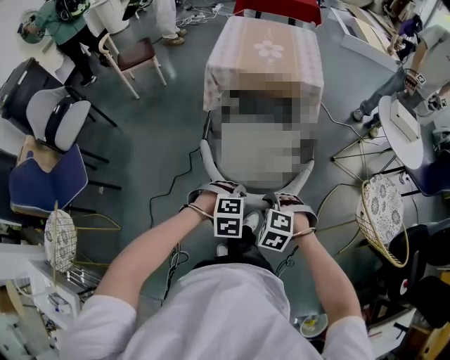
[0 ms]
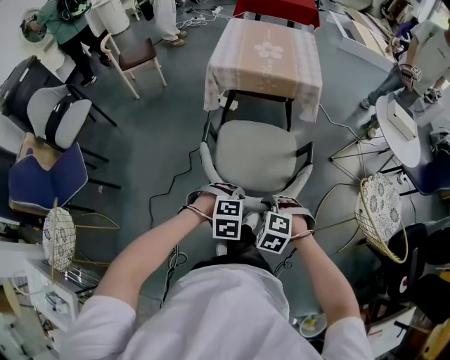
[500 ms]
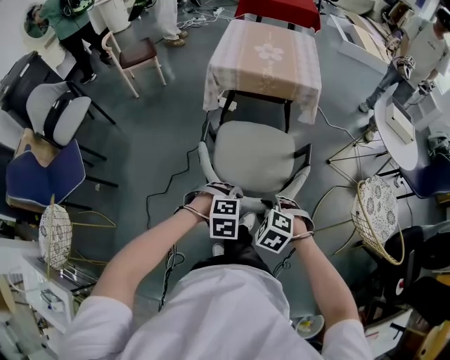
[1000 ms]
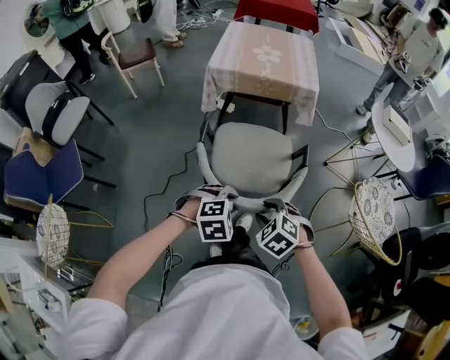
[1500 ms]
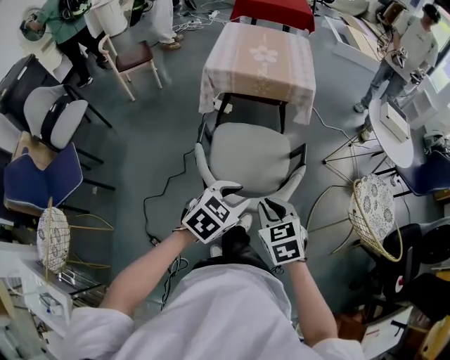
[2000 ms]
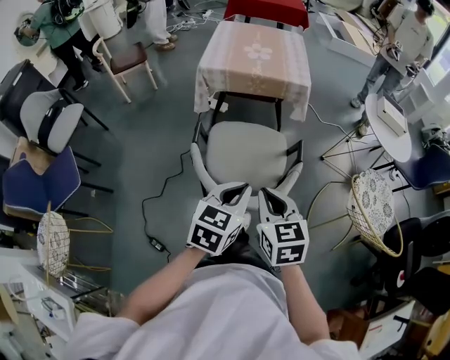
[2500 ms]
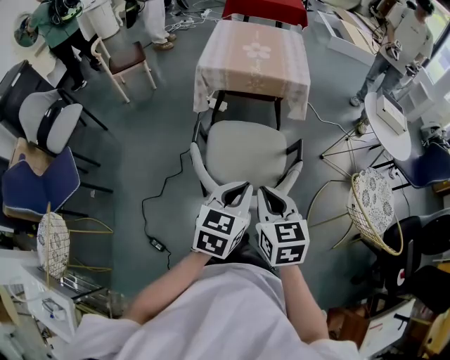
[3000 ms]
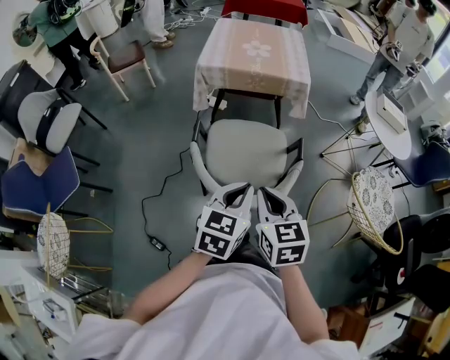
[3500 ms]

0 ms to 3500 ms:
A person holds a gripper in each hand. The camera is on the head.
0 ms to 2000 ms: Both grippers move upward, roughly 10 cm. The left gripper twists roughly 40 degrees counterclockwise, seen from behind. The right gripper rolls clockwise, seen from behind, by approximately 50 degrees.
2000 ms to 3500 ms: The left gripper swivels approximately 30 degrees, and closes its fingers, while the right gripper goes some 5 cm upward, and changes its angle by approximately 20 degrees.

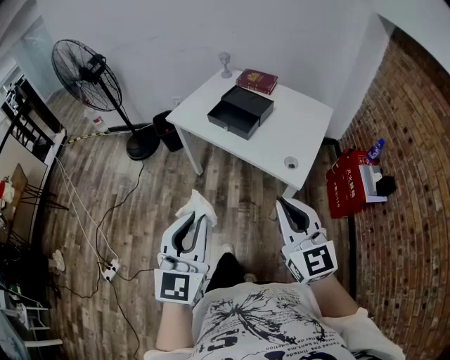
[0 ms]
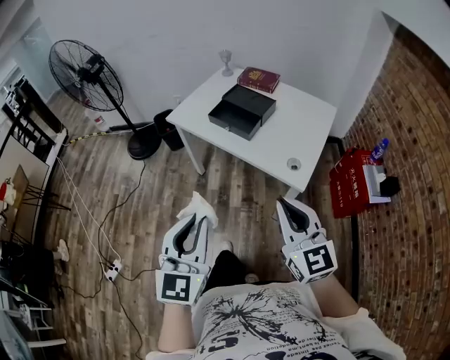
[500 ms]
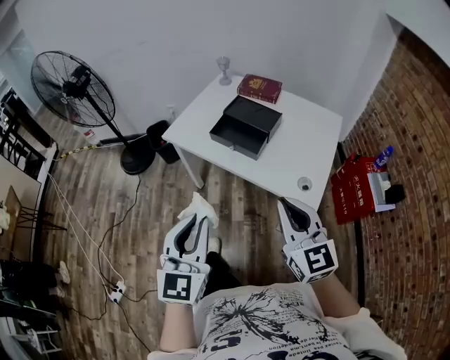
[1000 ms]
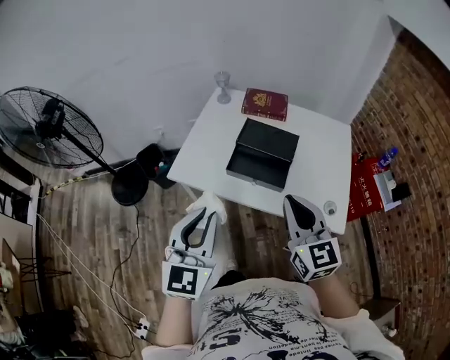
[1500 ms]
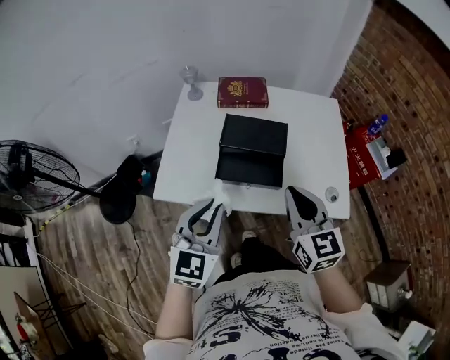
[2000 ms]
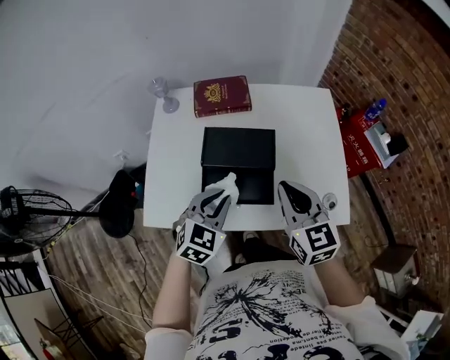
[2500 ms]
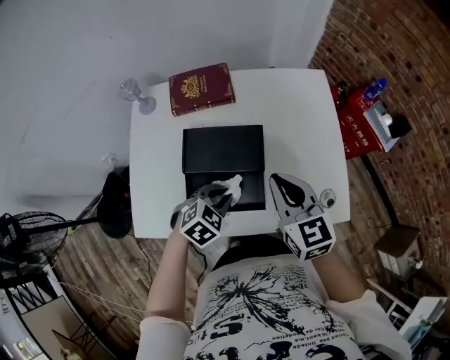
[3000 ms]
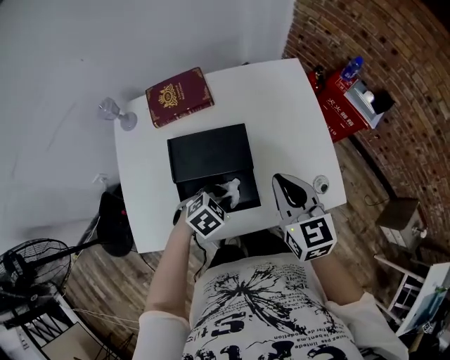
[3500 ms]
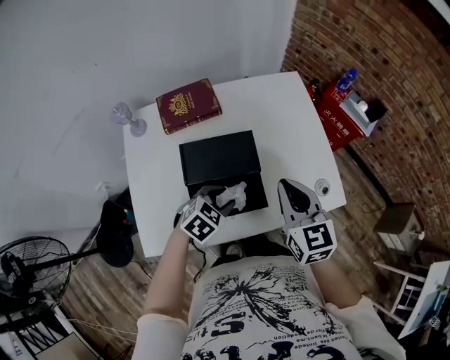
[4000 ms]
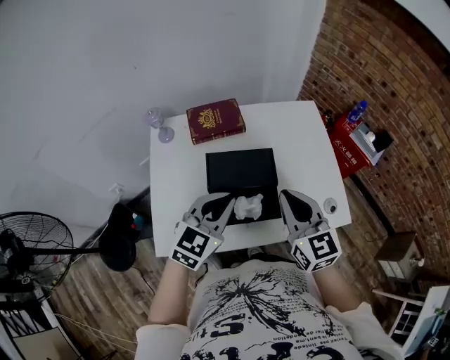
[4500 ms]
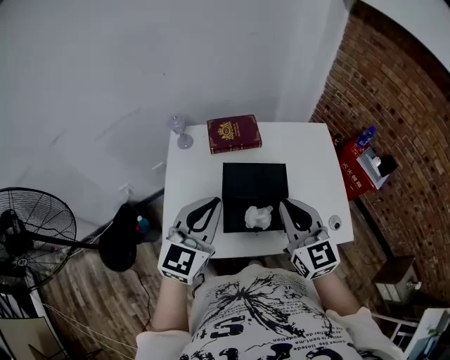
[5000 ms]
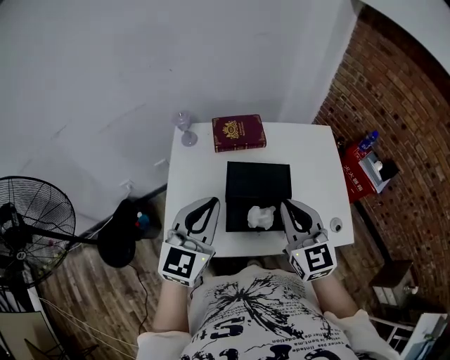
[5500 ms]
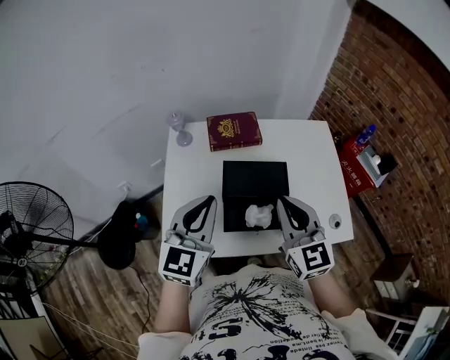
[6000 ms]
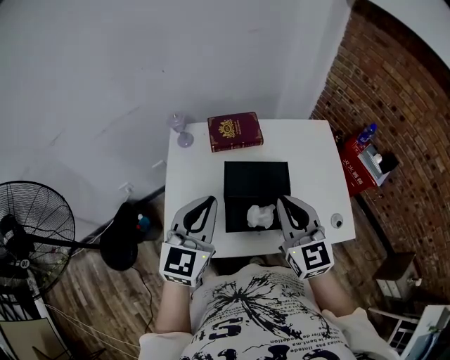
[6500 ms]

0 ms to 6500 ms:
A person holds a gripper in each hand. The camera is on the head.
0 ms to 2000 ms: Both grippers are carried about 50 cm. The right gripper turns by approximately 40 degrees. The left gripper turns by some 40 degrees.
2000 ms to 4500 ms: The right gripper reaches some 10 cm downward, then returns. Meanwhile the left gripper moves some 25 cm downward and comes back, rotates about 30 degrees, and opens, then closes again.
4500 ms to 6500 ms: The left gripper goes approximately 10 cm to the left and upward, and changes its angle by roughly 20 degrees; the right gripper goes some 5 cm to the left.

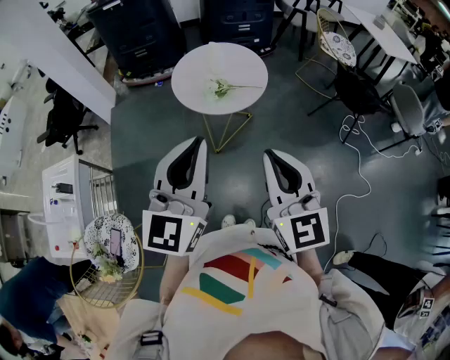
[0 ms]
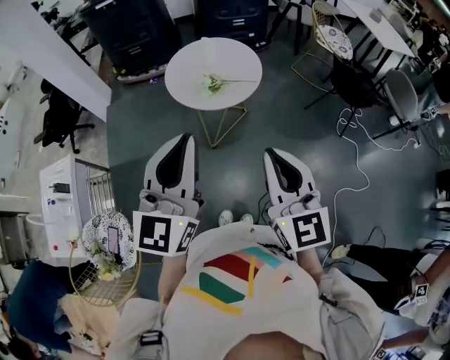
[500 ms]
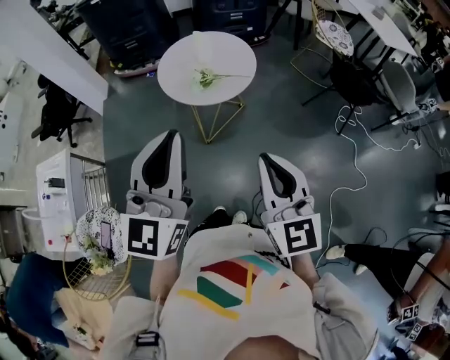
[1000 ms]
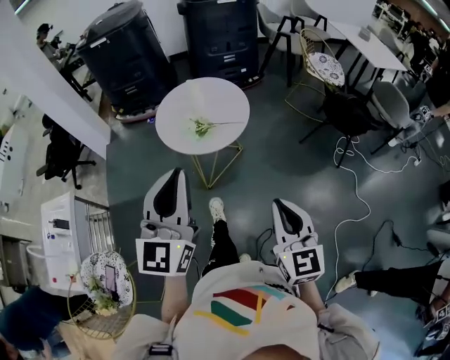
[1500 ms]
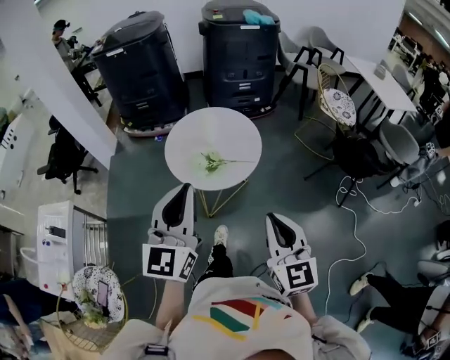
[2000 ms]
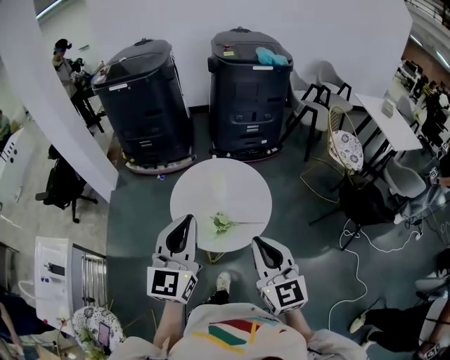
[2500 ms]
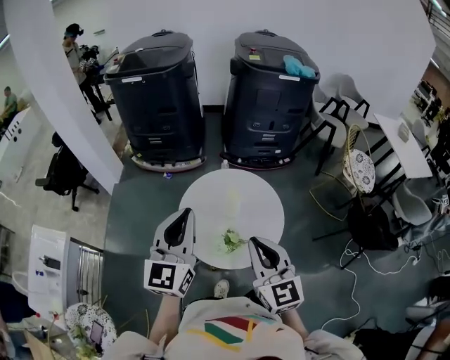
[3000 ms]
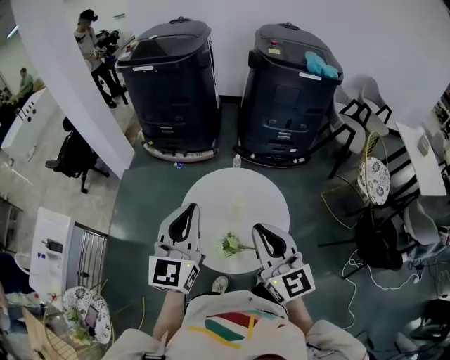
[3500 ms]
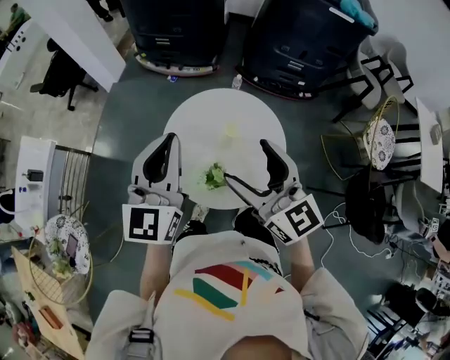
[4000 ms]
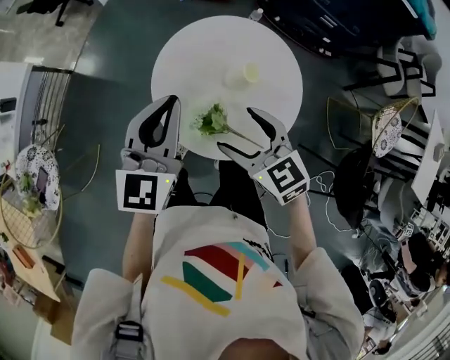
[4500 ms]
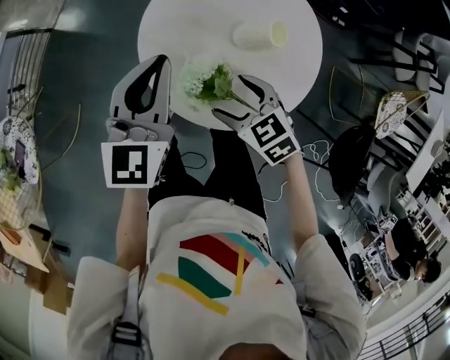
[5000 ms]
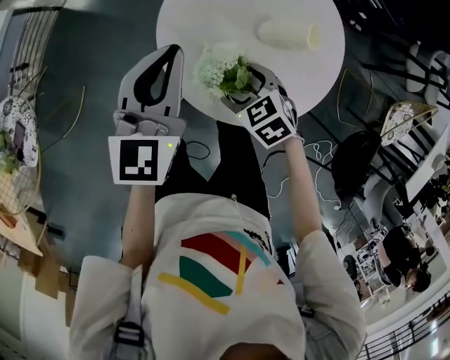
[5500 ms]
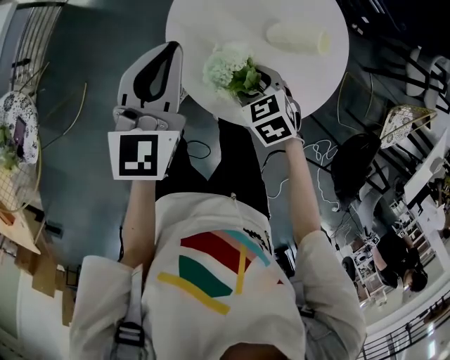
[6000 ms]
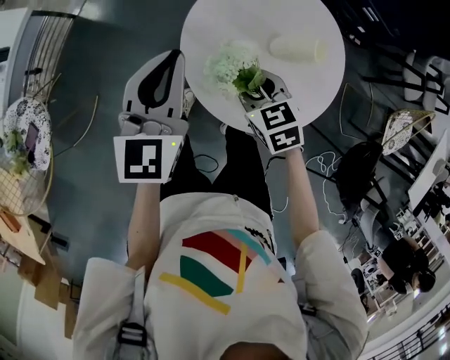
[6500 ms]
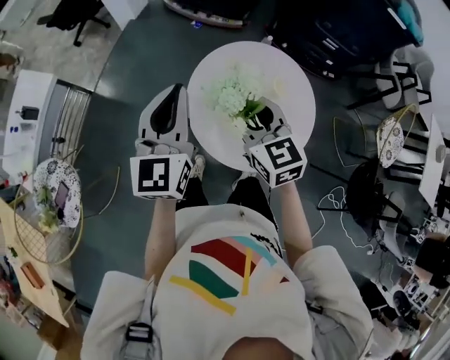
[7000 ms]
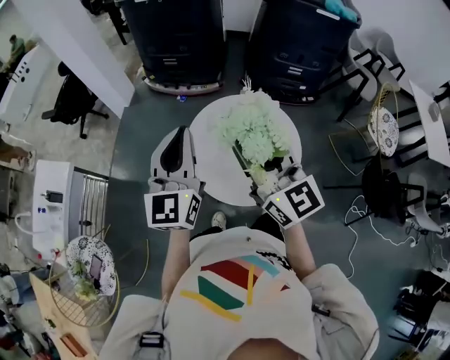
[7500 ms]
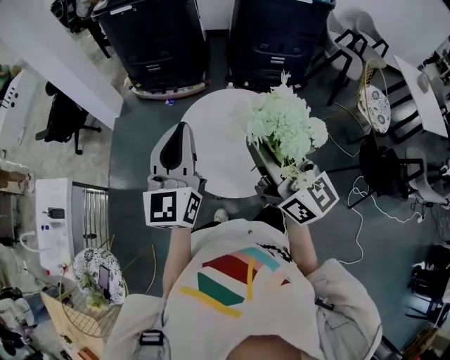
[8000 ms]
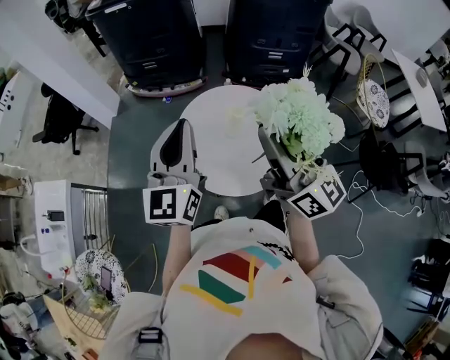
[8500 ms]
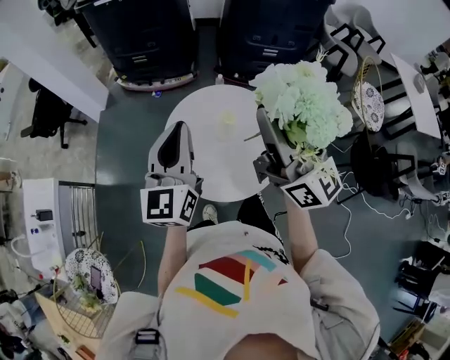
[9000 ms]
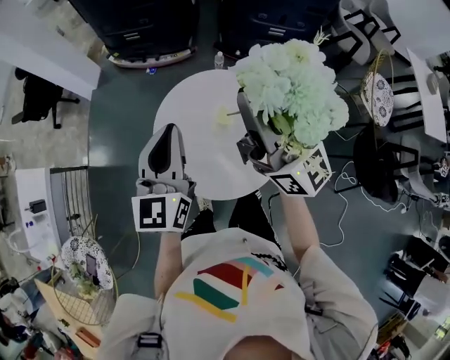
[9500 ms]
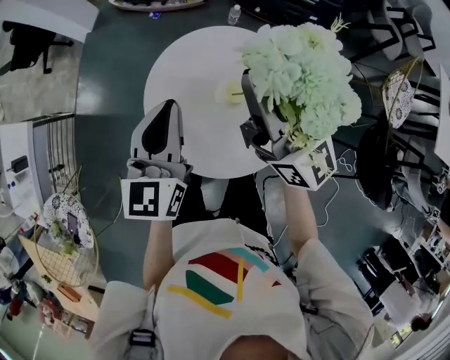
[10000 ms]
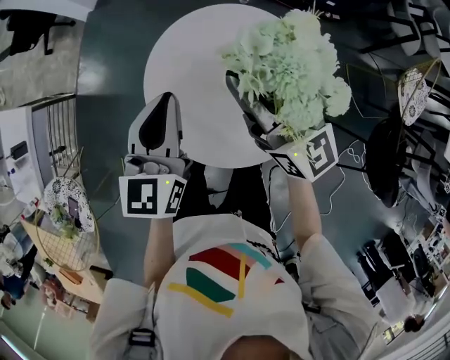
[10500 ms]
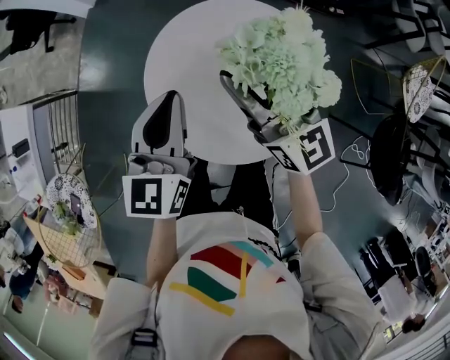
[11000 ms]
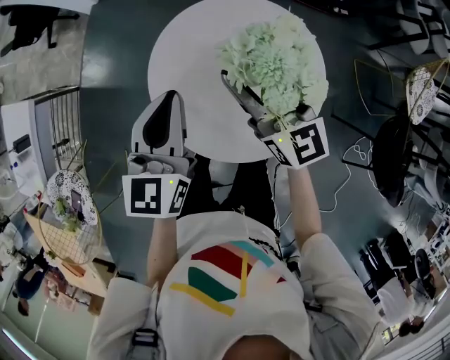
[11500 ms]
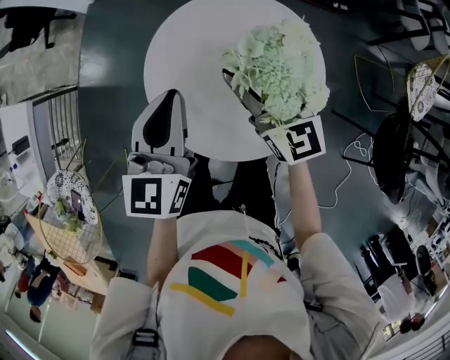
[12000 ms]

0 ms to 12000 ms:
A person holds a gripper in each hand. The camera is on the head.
0 ms to 2000 ms: The right gripper goes roughly 15 cm forward, to the right and downward. Meanwhile the left gripper shifts some 15 cm forward.
2000 ms to 4000 ms: The left gripper changes place by approximately 30 cm, and turns by approximately 20 degrees; the right gripper ends up approximately 40 cm from where it was, swivels some 40 degrees, and opens its fingers.
4000 ms to 6000 ms: The left gripper moves downward, approximately 20 cm, and rotates approximately 20 degrees. The right gripper is displaced downward by about 35 cm, points its fingers approximately 60 degrees further downward, and closes.
6000 ms to 8000 ms: The right gripper shifts about 40 cm upward, and tips its fingers upward by some 80 degrees, while the left gripper heads upward, covering approximately 25 cm, and swivels about 30 degrees.
8000 ms to 10000 ms: The left gripper shifts roughly 20 cm downward and forward, and rotates about 20 degrees; the right gripper shifts about 20 cm forward and downward.
10000 ms to 12000 ms: The right gripper goes about 15 cm downward, changes its angle by roughly 20 degrees, and opens its fingers. The left gripper ends up approximately 5 cm from where it was.

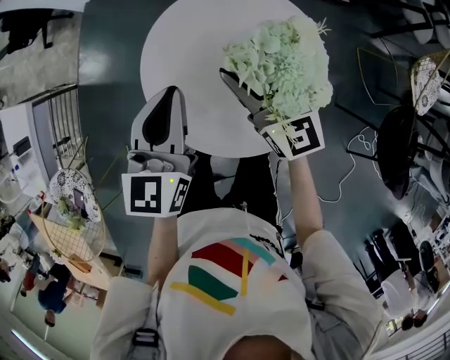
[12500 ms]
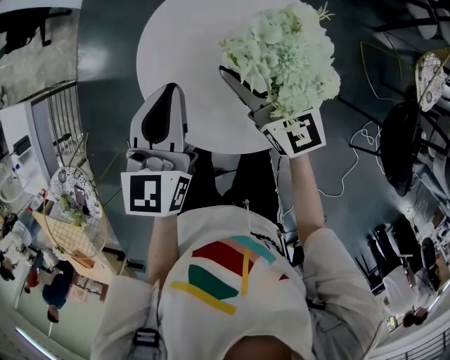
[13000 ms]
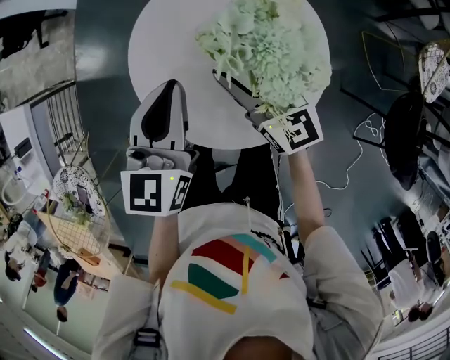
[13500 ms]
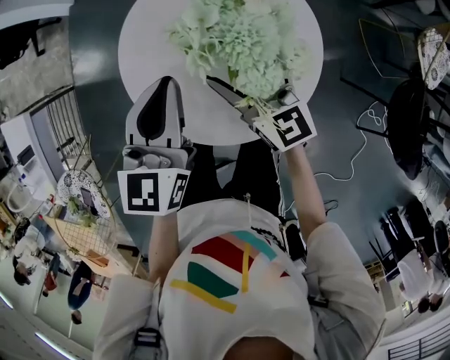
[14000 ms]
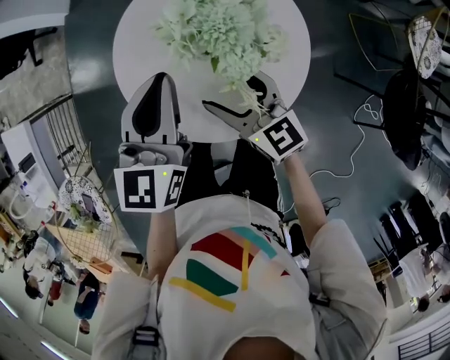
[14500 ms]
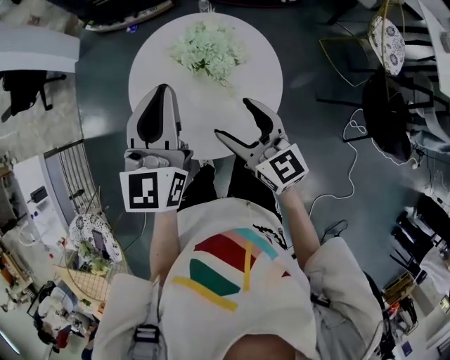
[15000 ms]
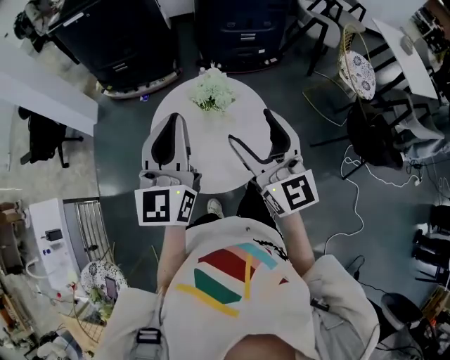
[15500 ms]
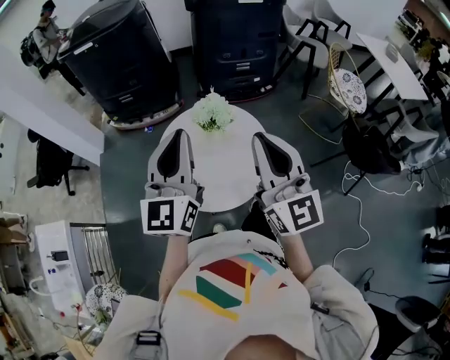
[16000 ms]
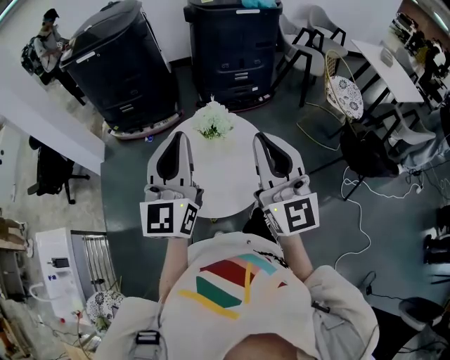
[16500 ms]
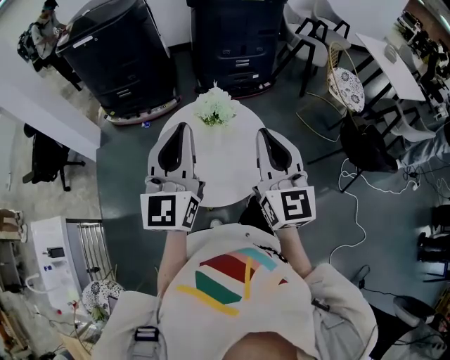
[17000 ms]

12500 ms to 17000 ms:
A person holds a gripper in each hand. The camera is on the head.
12500 ms to 14500 ms: The right gripper heads backward and downward, covering approximately 10 cm.
14500 ms to 17000 ms: The grippers both shift upward by about 25 cm. The right gripper swivels some 50 degrees, and closes up. Meanwhile the left gripper rotates roughly 30 degrees.
